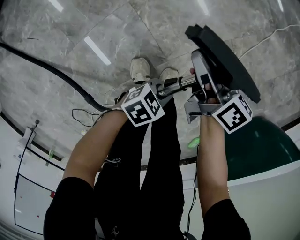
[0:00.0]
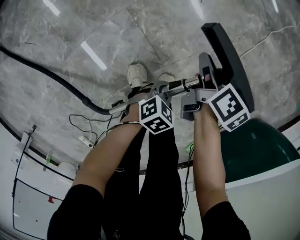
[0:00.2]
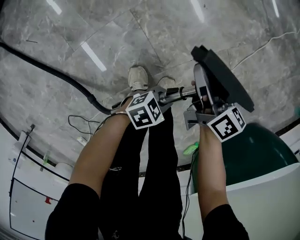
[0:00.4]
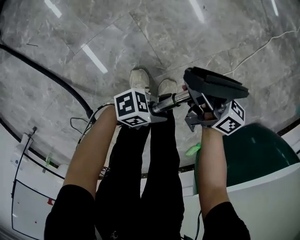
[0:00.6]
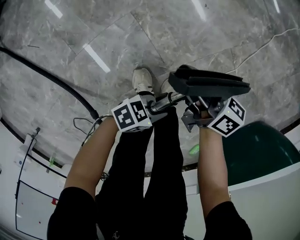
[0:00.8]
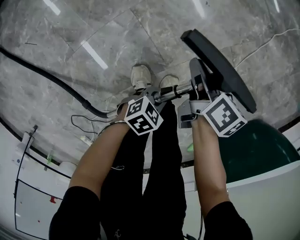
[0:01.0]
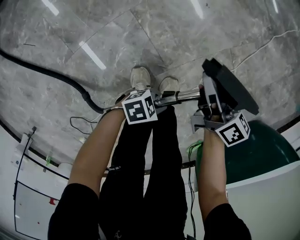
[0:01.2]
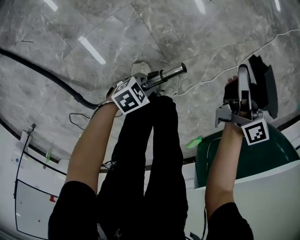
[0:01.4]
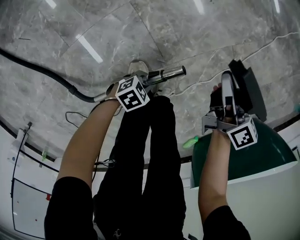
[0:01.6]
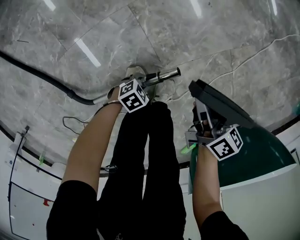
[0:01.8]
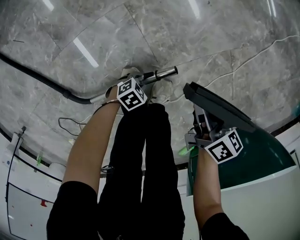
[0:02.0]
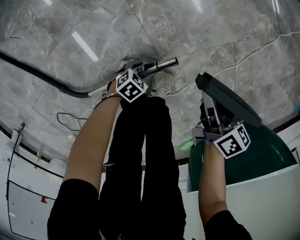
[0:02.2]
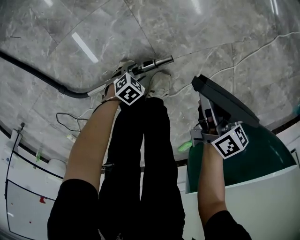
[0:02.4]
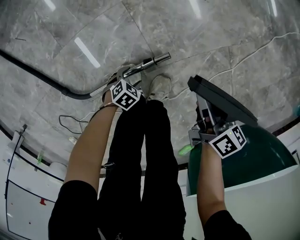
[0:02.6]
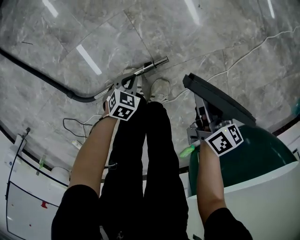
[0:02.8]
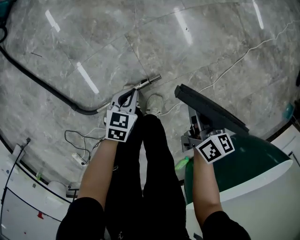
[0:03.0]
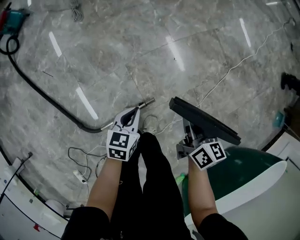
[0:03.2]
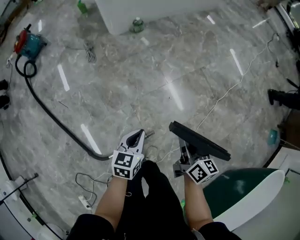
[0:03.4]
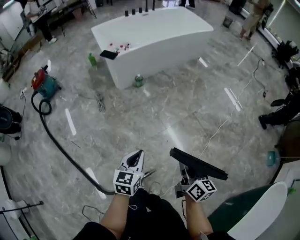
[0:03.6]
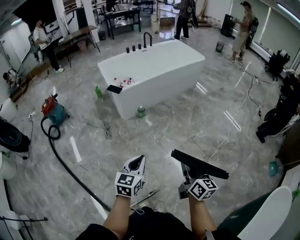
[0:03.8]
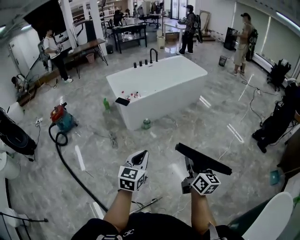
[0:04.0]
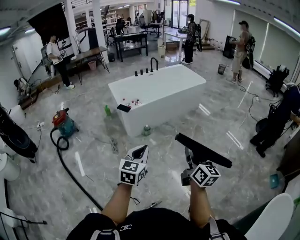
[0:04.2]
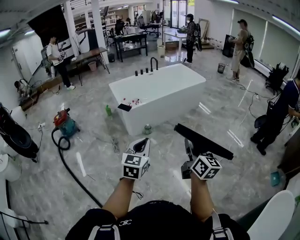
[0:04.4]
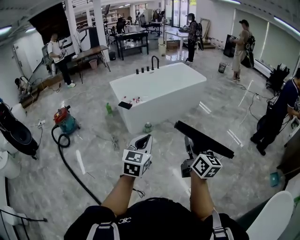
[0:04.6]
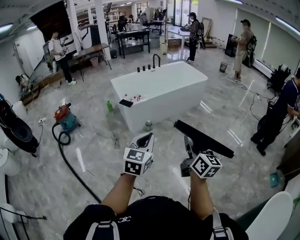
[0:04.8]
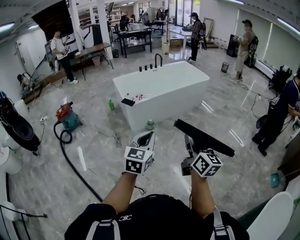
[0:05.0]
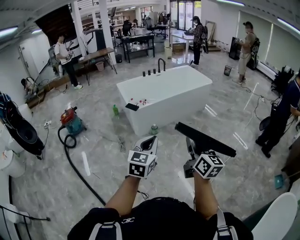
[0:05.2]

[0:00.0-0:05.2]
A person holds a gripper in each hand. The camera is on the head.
0:00.0 to 0:01.8: The right gripper moves up and down over about 5 cm, changing direction 3 times. Meanwhile the left gripper shifts roughly 15 cm downward.
0:01.8 to 0:03.4: Both grippers travel together upward, about 40 cm. The left gripper changes its angle by roughly 60 degrees, and opens and closes again; the right gripper swivels approximately 30 degrees.
0:03.4 to 0:05.2: Both grippers move upward, some 50 cm. The left gripper changes its angle by some 30 degrees. The right gripper rotates approximately 30 degrees.

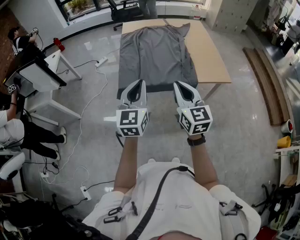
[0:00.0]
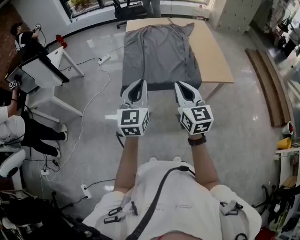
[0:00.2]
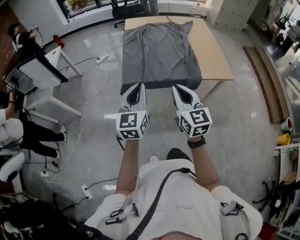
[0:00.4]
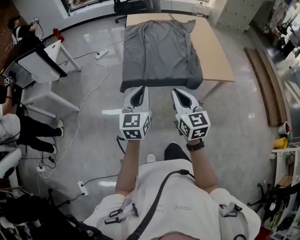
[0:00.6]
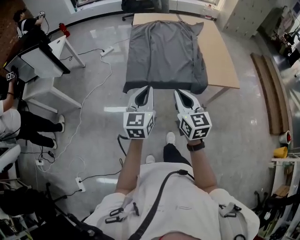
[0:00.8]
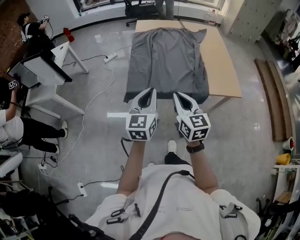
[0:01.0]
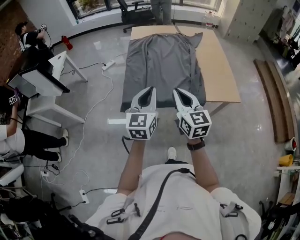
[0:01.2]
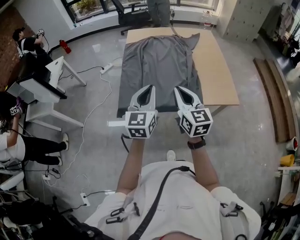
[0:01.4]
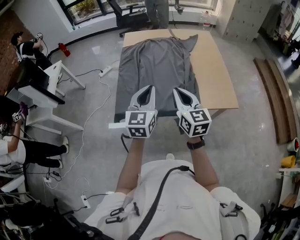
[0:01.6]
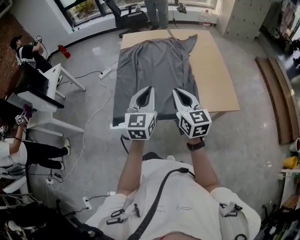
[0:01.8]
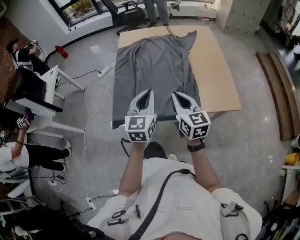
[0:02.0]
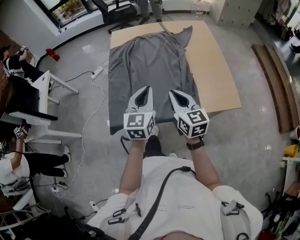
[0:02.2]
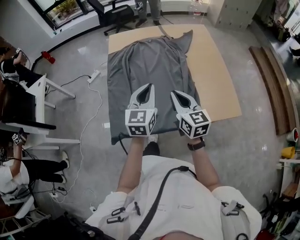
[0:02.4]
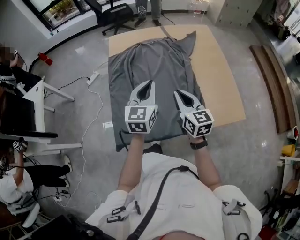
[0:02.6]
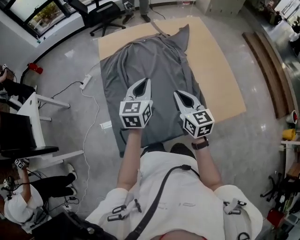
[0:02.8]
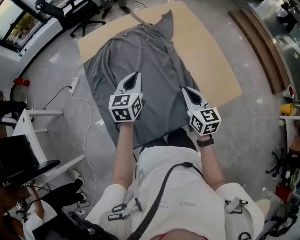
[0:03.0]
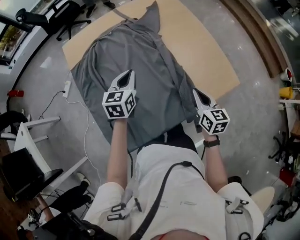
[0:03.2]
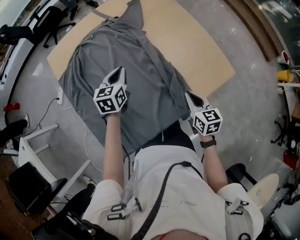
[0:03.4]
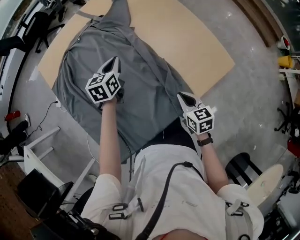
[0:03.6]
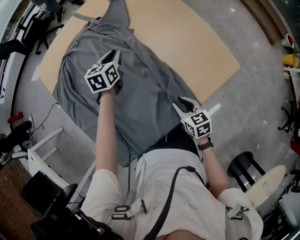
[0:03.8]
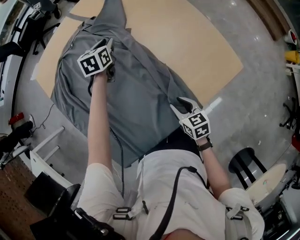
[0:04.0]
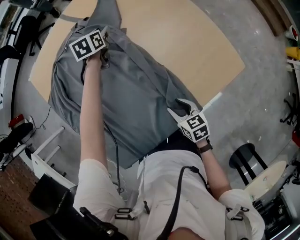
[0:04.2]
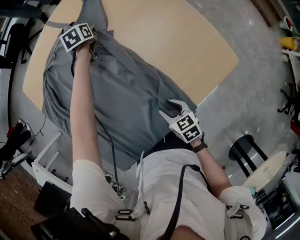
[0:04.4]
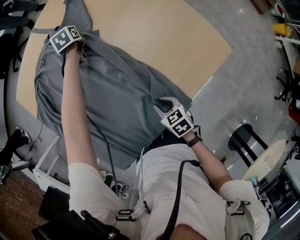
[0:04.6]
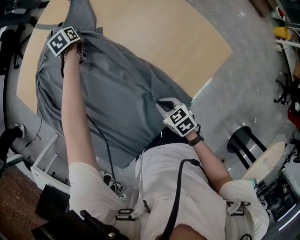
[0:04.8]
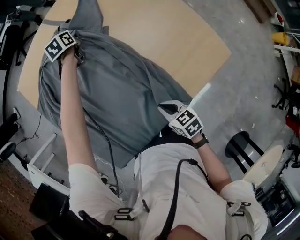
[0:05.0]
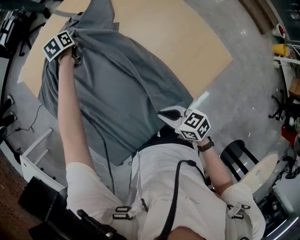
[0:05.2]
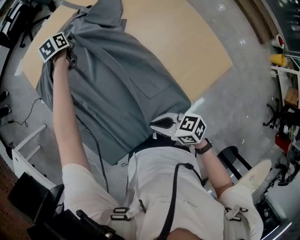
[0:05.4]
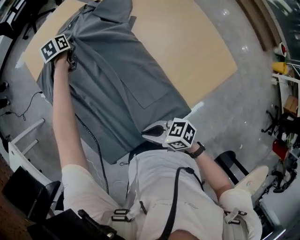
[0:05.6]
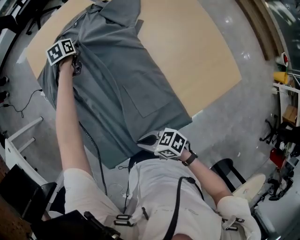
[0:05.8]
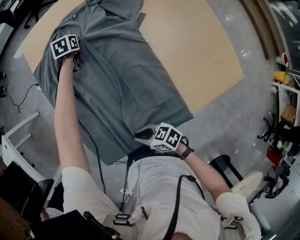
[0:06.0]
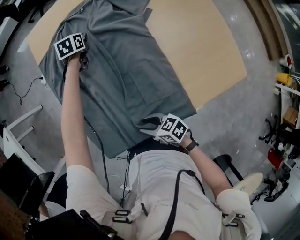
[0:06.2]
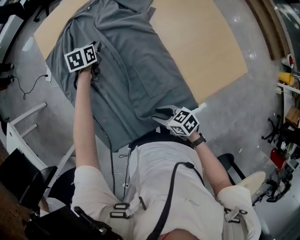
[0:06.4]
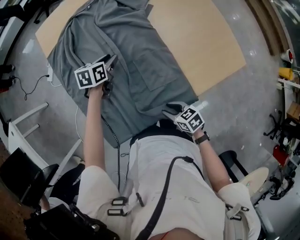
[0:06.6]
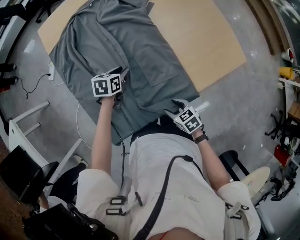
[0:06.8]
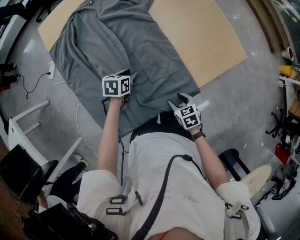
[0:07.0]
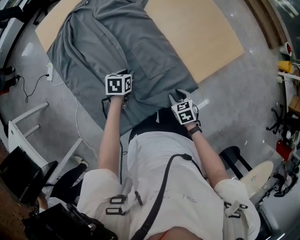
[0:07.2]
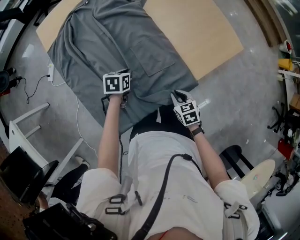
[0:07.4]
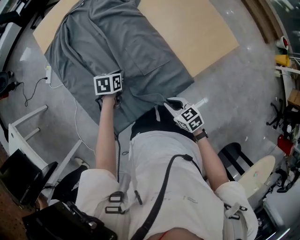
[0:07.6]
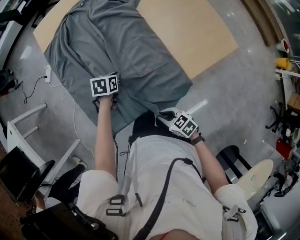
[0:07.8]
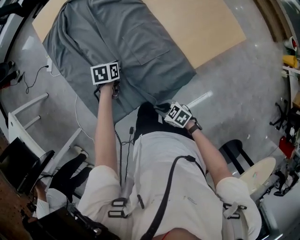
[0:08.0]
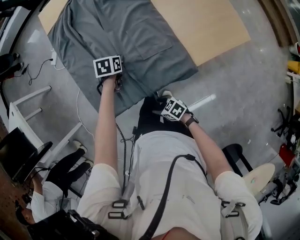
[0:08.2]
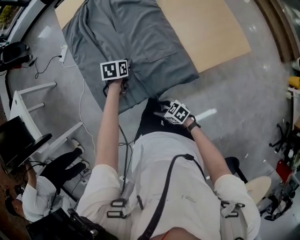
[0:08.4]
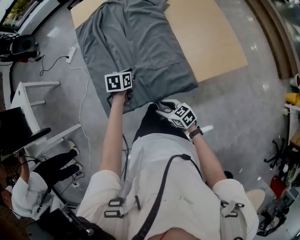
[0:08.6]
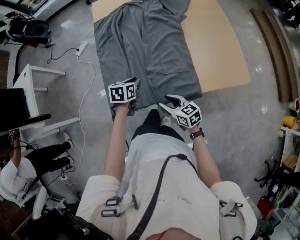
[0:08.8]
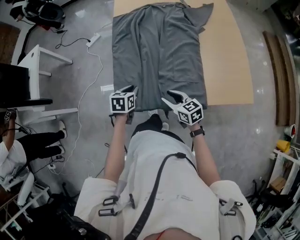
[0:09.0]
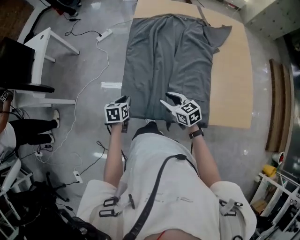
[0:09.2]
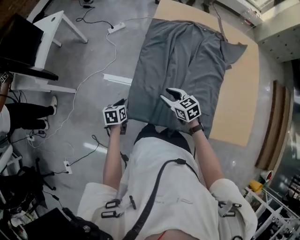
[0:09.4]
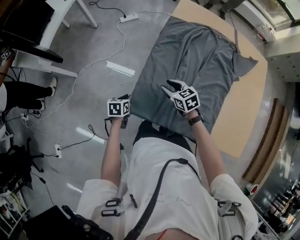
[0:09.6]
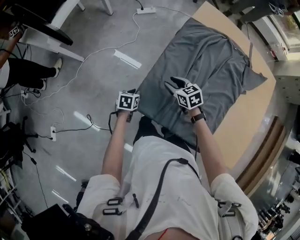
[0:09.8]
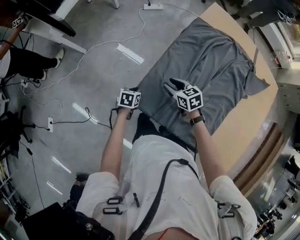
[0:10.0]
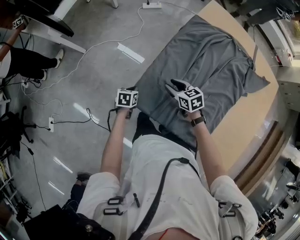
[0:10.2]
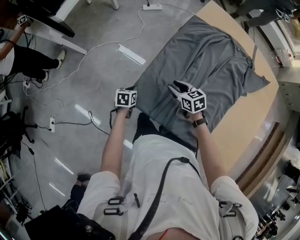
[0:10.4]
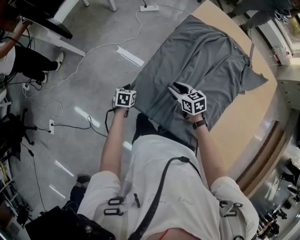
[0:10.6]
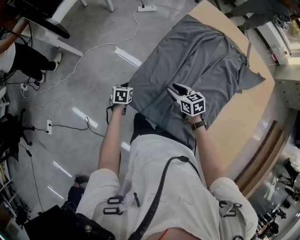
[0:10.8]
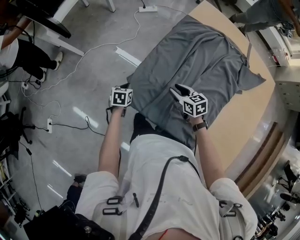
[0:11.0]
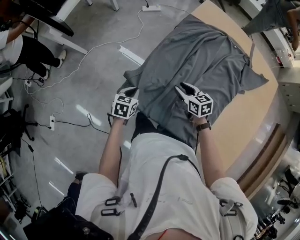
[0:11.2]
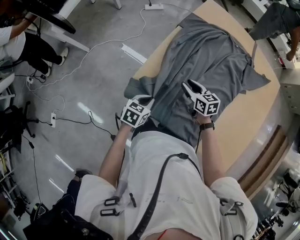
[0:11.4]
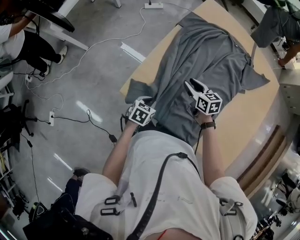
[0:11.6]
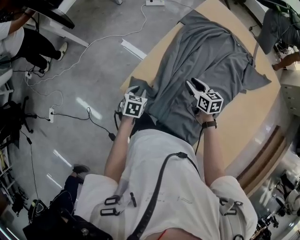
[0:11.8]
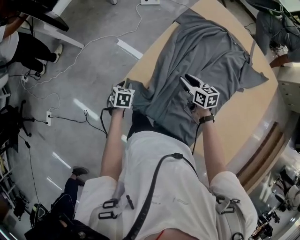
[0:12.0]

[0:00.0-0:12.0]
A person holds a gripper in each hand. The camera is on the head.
0:00.0 to 0:01.6: The right gripper goes about 20 cm forward. Meanwhile the left gripper heads forward and to the right, covering roughly 20 cm.
0:01.6 to 0:03.0: The left gripper shifts some 30 cm forward, and swivels approximately 30 degrees. Meanwhile the right gripper goes about 25 cm forward and downward, and rotates about 30 degrees.
0:03.0 to 0:04.4: The left gripper heads forward and downward, covering approximately 50 cm, tilts its fingers roughly 30 degrees downward, and opens up, while the right gripper heads downward, covering approximately 20 cm, swivels about 30 degrees, and opens up.
0:04.4 to 0:06.0: The right gripper moves some 10 cm upward and comes back, rotates about 40 degrees, and closes up, while the left gripper ends up approximately 25 cm from where it was, and closes.
0:06.0 to 0:07.6: The left gripper moves approximately 40 cm, changes its angle by approximately 20 degrees, and opens and closes again, while the right gripper moves about 10 cm downward and comes back, rotates approximately 40 degrees, and opens, then closes once more.
0:07.6 to 0:09.0: The right gripper shifts by about 15 cm, turns by some 30 degrees, and opens, while the left gripper shifts by some 20 cm, and turns by approximately 30 degrees.
0:09.0 to 0:10.4: The left gripper changes place by some 20 cm, and rotates roughly 40 degrees, while the right gripper moves about 20 cm, and changes its angle by some 40 degrees.
0:10.4 to 0:12.0: The left gripper goes to the right and returns, about 15 cm each way, and opens up. Meanwhile the right gripper heads to the right, covering roughly 10 cm.

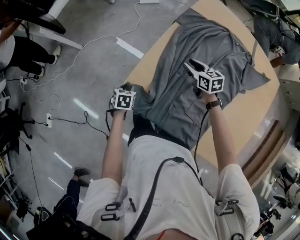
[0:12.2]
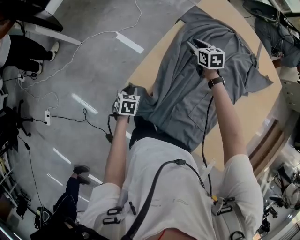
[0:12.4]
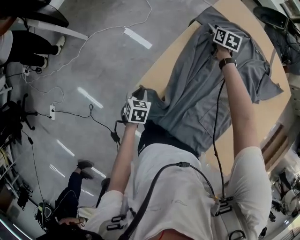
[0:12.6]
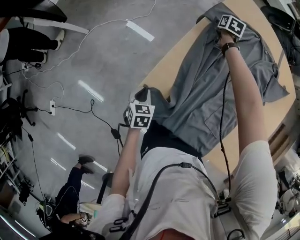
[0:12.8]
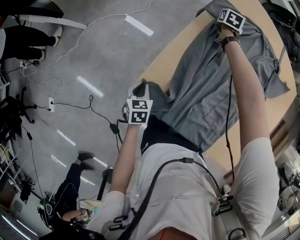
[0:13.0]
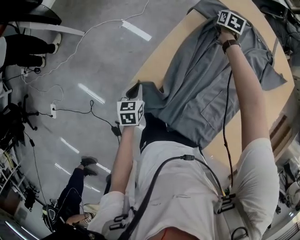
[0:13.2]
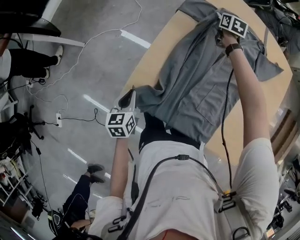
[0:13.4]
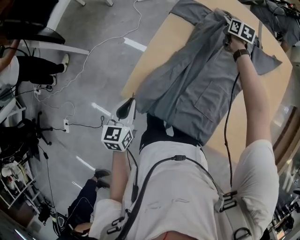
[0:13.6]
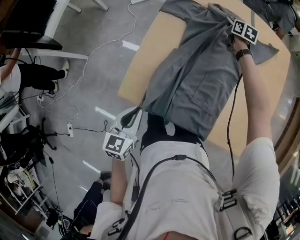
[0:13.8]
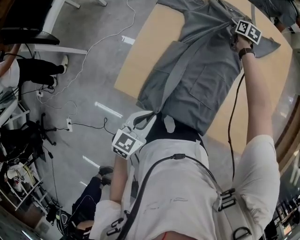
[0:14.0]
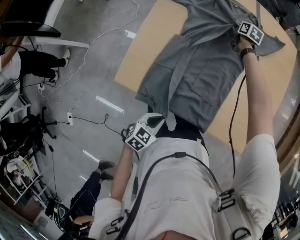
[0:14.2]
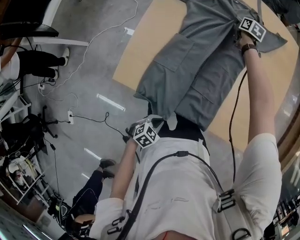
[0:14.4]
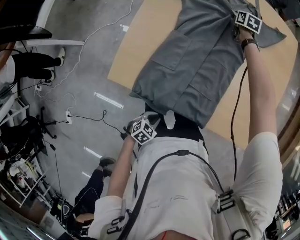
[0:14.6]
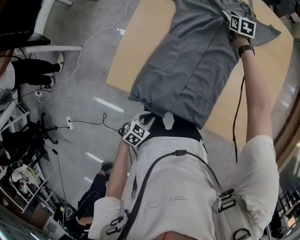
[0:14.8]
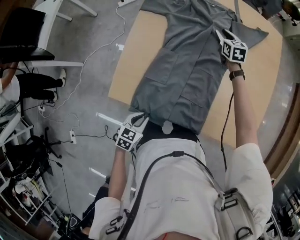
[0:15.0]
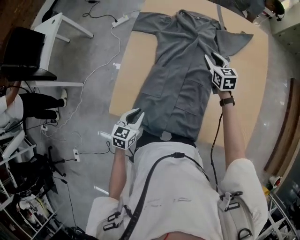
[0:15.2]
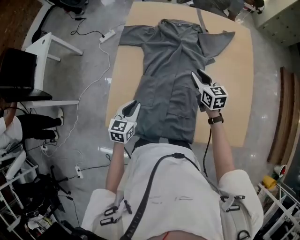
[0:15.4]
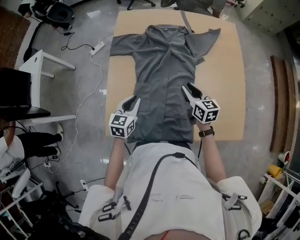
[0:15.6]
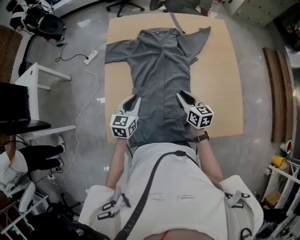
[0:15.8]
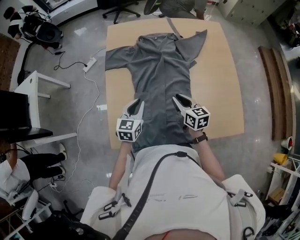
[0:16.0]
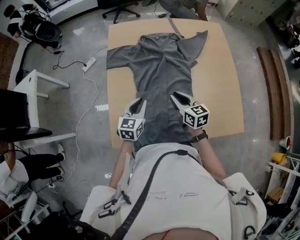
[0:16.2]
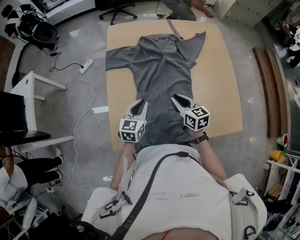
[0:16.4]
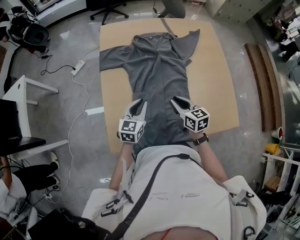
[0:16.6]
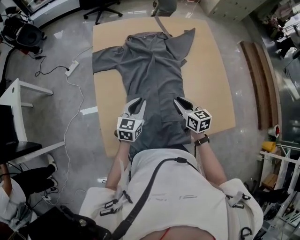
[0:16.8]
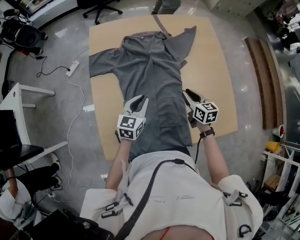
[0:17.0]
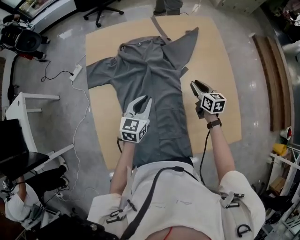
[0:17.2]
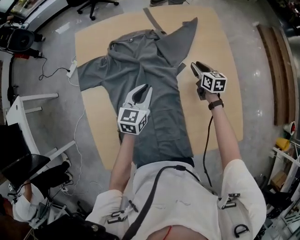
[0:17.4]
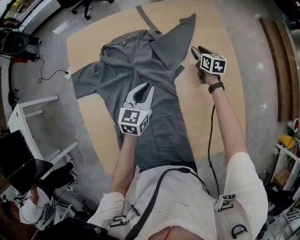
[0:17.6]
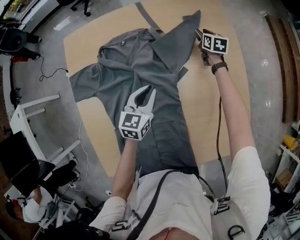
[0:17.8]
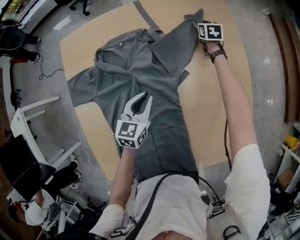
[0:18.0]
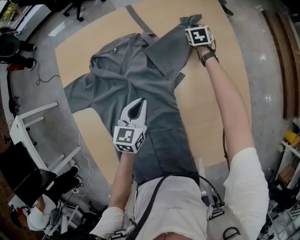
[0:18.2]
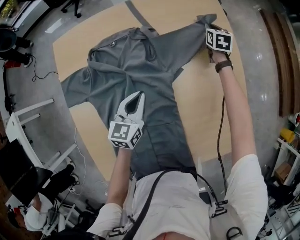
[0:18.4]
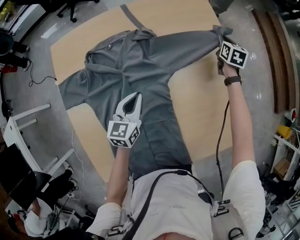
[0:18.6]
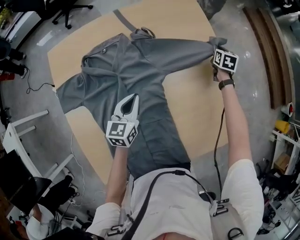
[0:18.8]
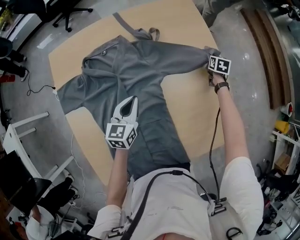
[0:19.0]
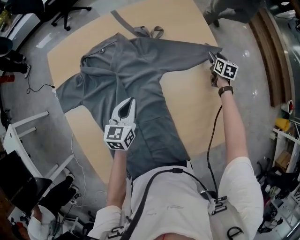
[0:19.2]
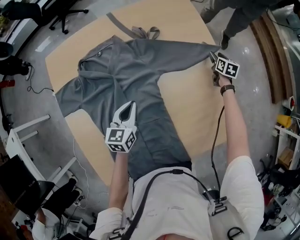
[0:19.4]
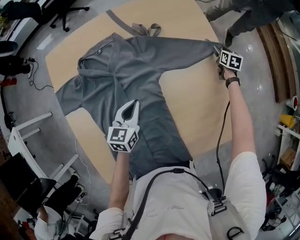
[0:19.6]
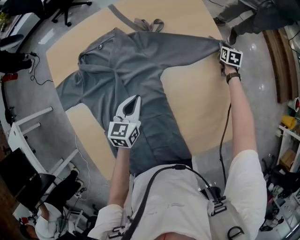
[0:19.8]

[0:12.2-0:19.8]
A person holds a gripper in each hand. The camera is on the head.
0:12.2 to 0:13.8: The right gripper reaches some 10 cm downward, then returns, changes its angle by roughly 40 degrees, and closes its fingers. The left gripper moves upward, roughly 20 cm, points its fingers some 30 degrees further upward, and closes up.
0:13.8 to 0:15.2: The right gripper reaches about 10 cm downward, then returns; the left gripper reaches roughly 25 cm downward, then returns.
0:15.2 to 0:16.8: The left gripper shifts some 20 cm forward, and changes its angle by approximately 30 degrees, while the right gripper shifts roughly 20 cm backward, and rotates roughly 20 degrees.
0:16.8 to 0:18.2: The left gripper travels forward and to the right by roughly 25 cm; the right gripper is displaced forward by some 50 cm, turns by roughly 30 degrees, and opens, then closes once more.
0:18.2 to 0:19.8: The right gripper is displaced to the right by about 30 cm, swivels some 20 degrees, and opens, then closes again. Meanwhile the left gripper moves roughly 5 cm.
